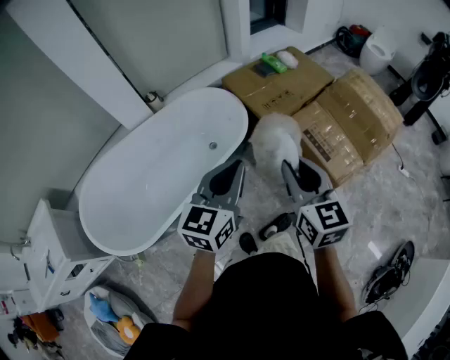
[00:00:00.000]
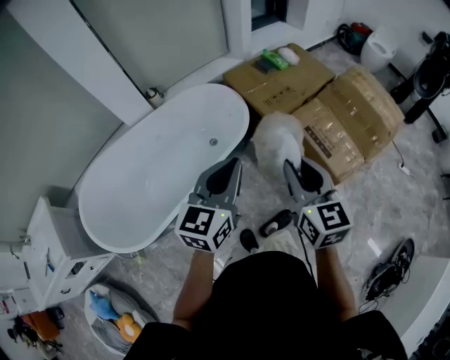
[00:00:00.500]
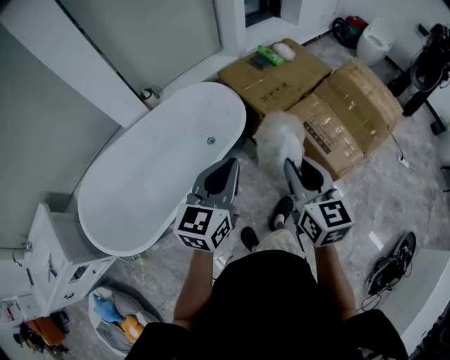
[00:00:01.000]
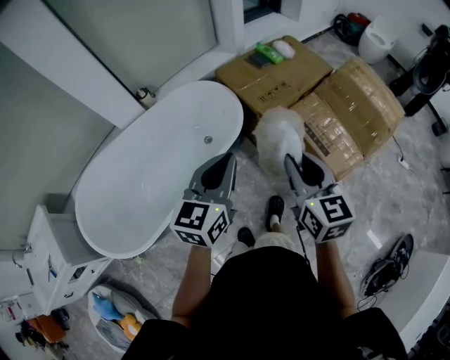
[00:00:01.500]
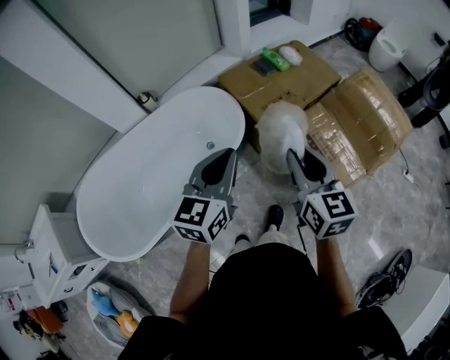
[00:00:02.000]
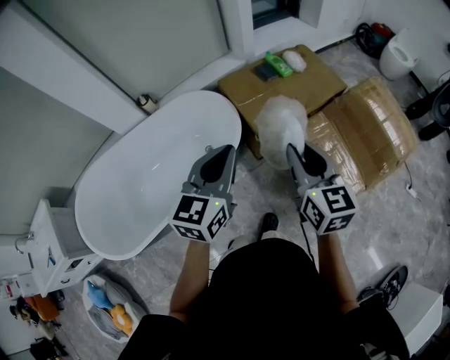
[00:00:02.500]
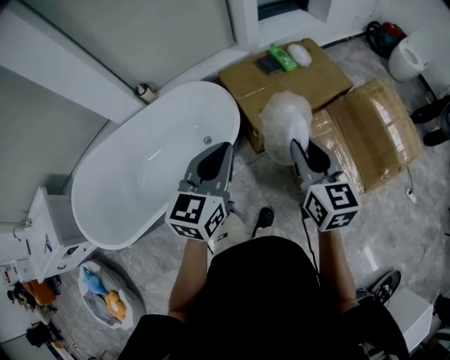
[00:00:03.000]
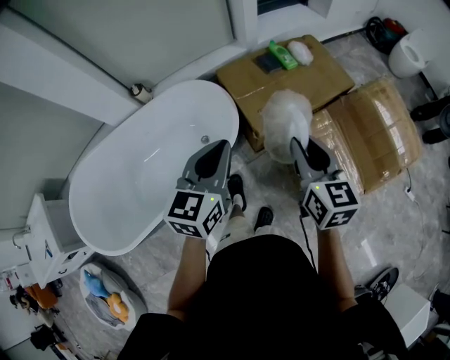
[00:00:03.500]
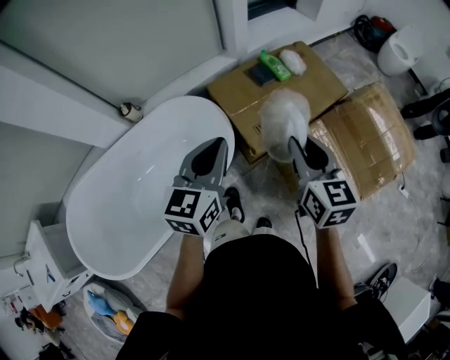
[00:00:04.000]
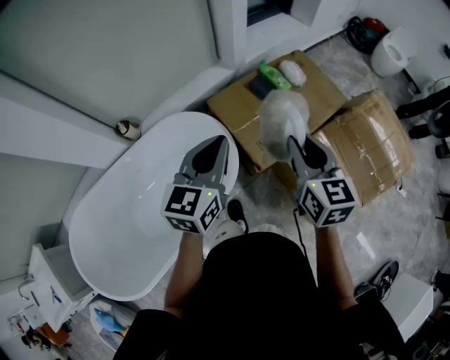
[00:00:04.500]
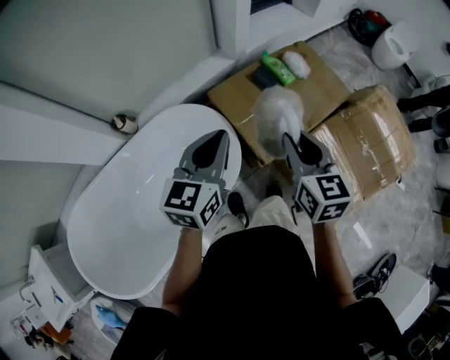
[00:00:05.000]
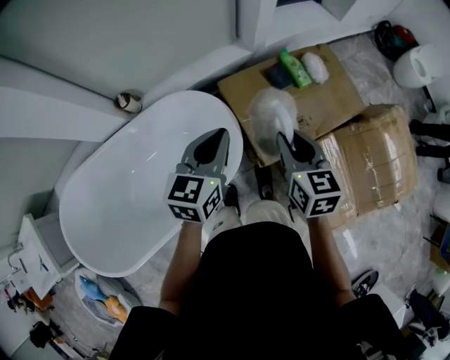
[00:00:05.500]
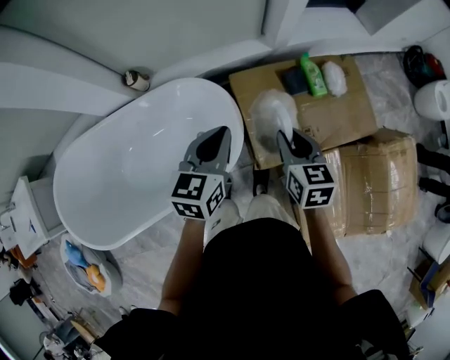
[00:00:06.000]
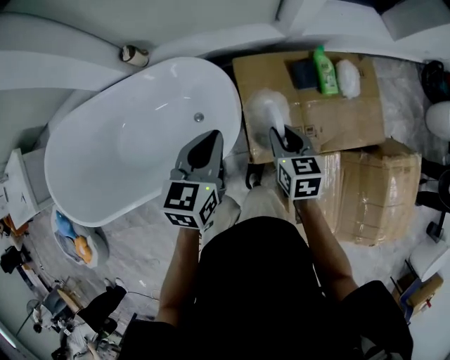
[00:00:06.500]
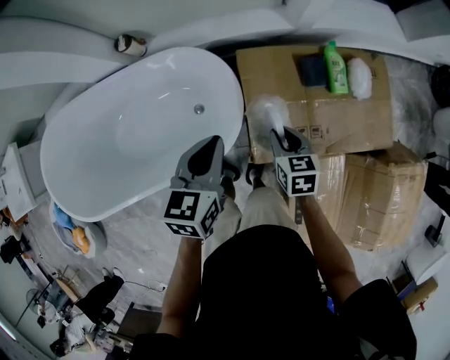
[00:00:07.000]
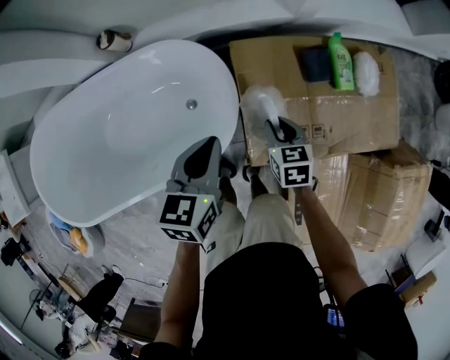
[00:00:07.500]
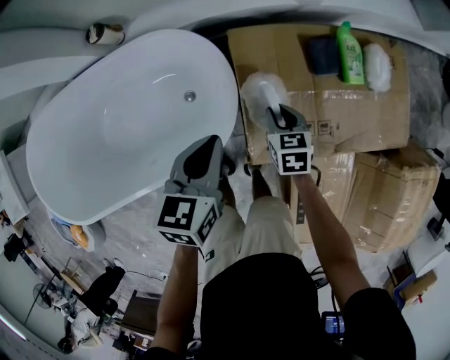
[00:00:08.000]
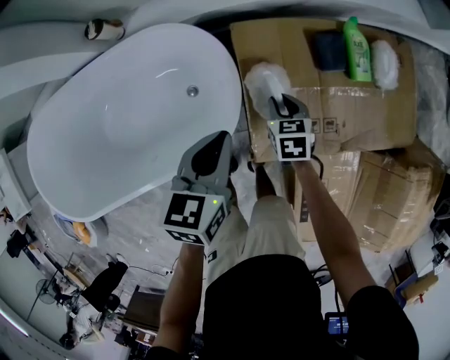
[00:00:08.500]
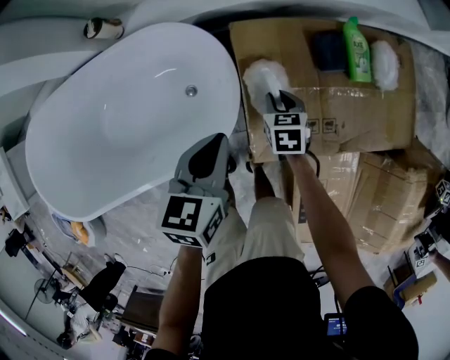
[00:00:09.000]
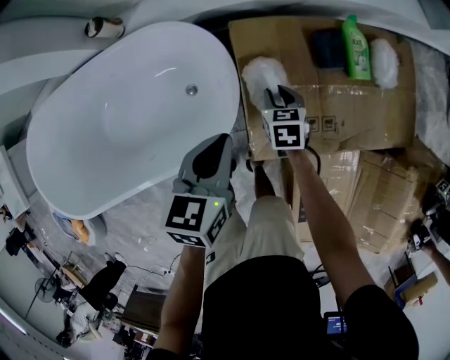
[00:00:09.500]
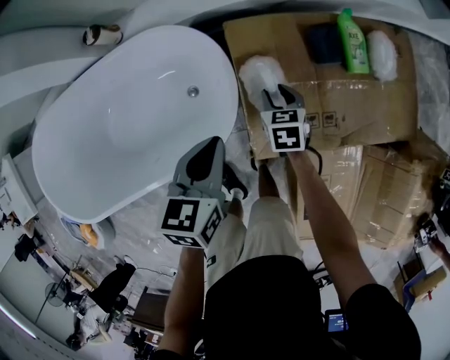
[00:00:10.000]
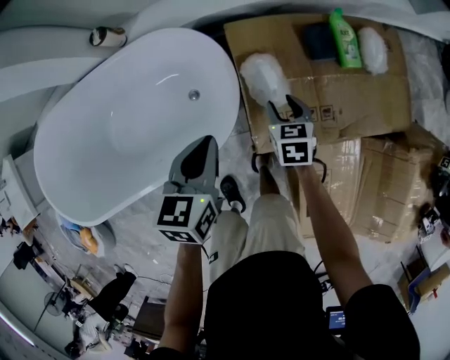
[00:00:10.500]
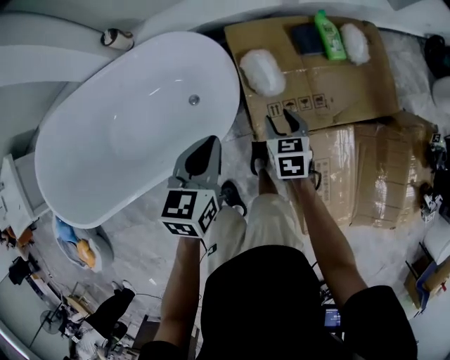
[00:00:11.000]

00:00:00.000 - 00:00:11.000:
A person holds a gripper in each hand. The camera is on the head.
00:00:00.000 - 00:00:02.000: The right gripper is displaced forward and to the right by about 15 cm. The left gripper heads forward, covering some 15 cm.
00:00:02.000 - 00:00:03.500: The right gripper heads forward and to the right, covering about 20 cm; the left gripper goes approximately 15 cm forward.
00:00:03.500 - 00:00:05.500: The left gripper travels forward by some 25 cm. Meanwhile the right gripper shifts approximately 25 cm forward and to the left.
00:00:05.500 - 00:00:07.500: The left gripper moves downward, some 20 cm, and swivels about 30 degrees; the right gripper travels downward by some 30 cm, and swivels approximately 30 degrees.
00:00:07.500 - 00:00:09.000: The left gripper goes roughly 5 cm downward; the right gripper heads downward, covering some 10 cm.
00:00:09.000 - 00:00:11.000: The two grippers go some 15 cm backward and upward. The right gripper opens.

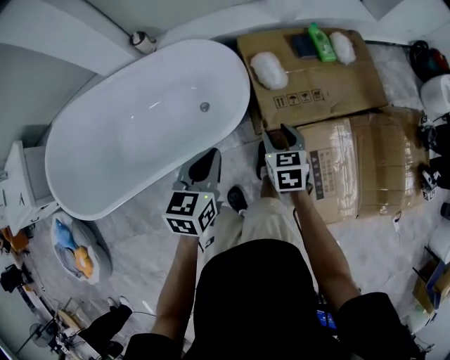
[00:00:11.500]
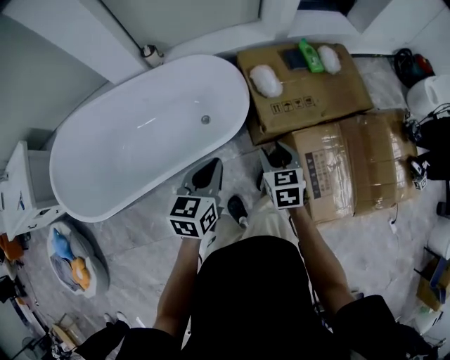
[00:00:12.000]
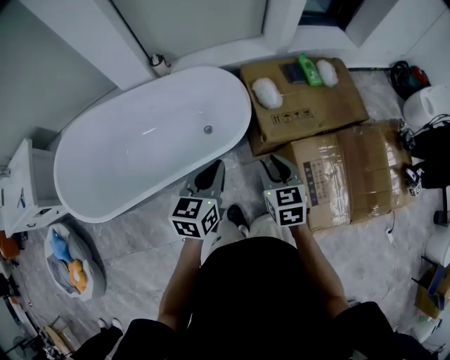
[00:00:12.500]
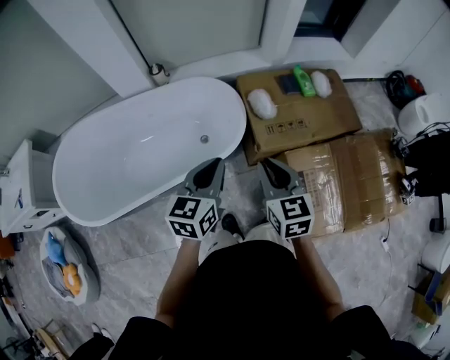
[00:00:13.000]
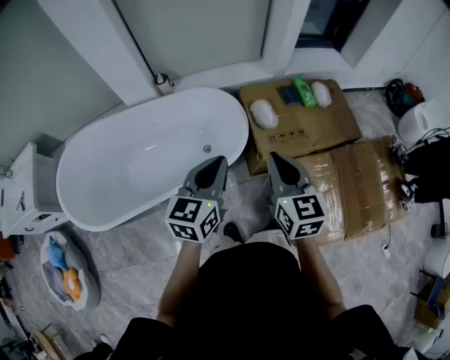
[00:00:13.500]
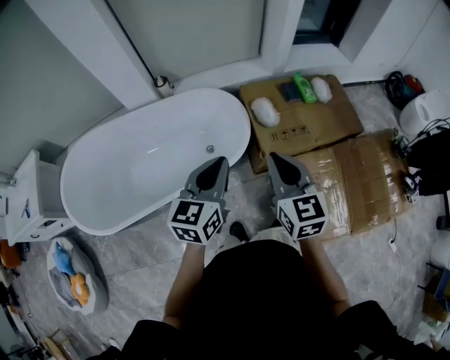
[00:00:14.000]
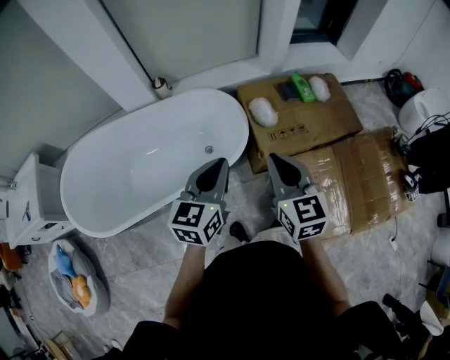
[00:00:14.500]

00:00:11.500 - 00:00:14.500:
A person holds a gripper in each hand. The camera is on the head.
00:00:11.500 - 00:00:13.000: The right gripper shifts approximately 25 cm upward and backward, and closes. Meanwhile the left gripper goes about 15 cm upward and backward.
00:00:13.000 - 00:00:14.500: The right gripper goes approximately 5 cm upward.

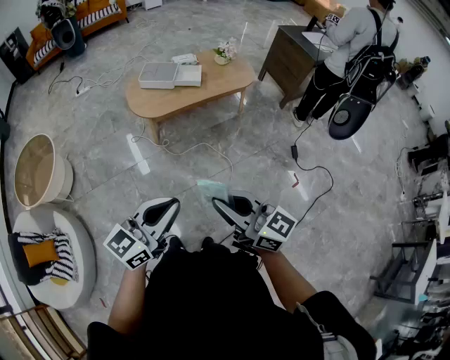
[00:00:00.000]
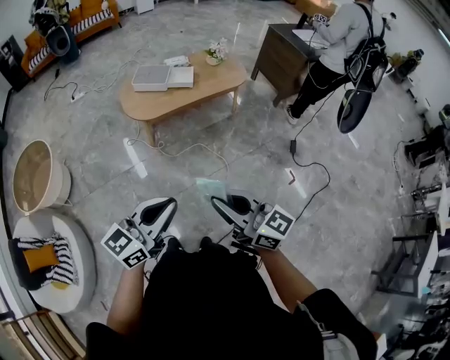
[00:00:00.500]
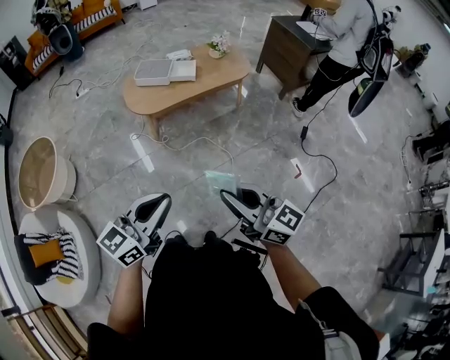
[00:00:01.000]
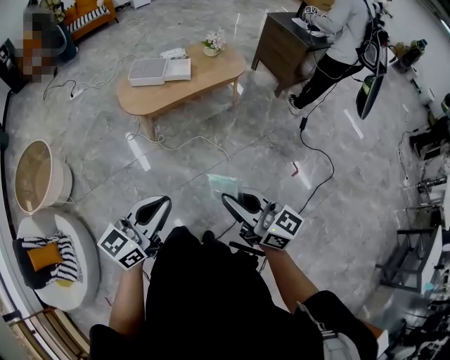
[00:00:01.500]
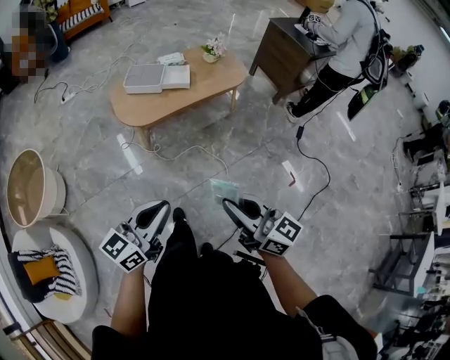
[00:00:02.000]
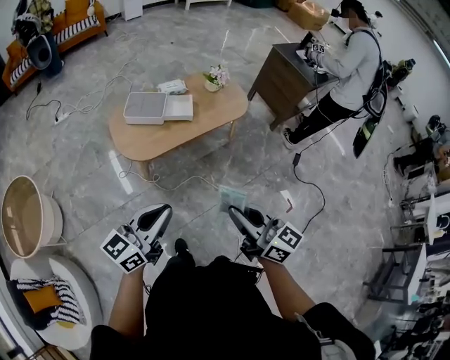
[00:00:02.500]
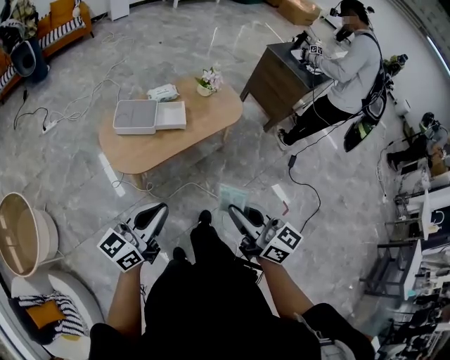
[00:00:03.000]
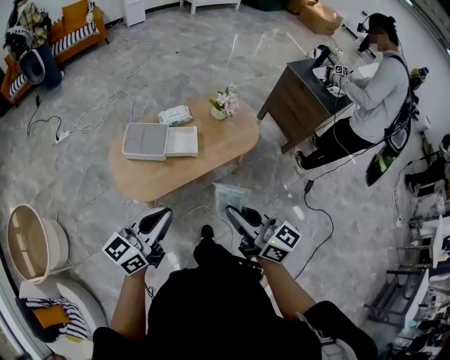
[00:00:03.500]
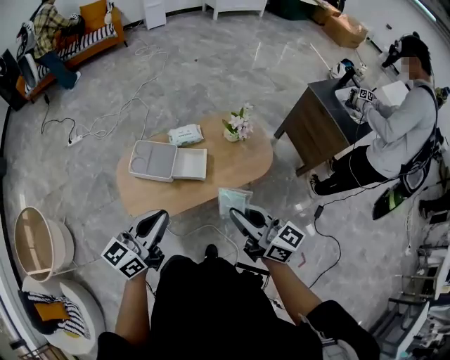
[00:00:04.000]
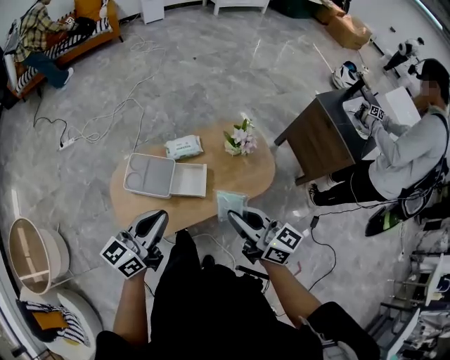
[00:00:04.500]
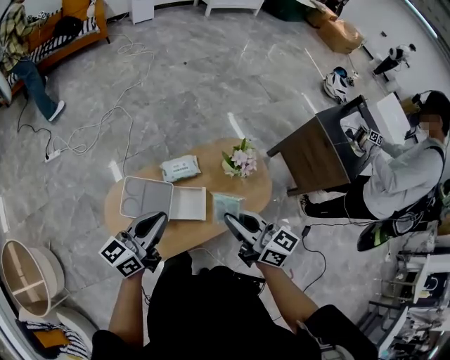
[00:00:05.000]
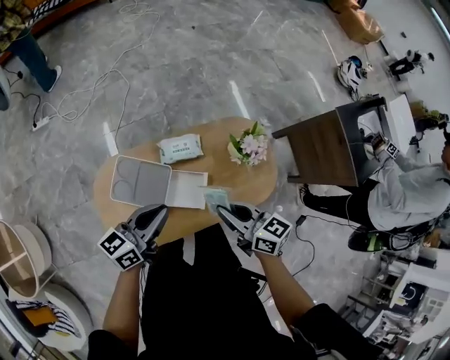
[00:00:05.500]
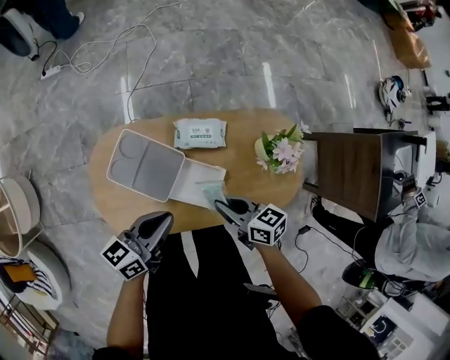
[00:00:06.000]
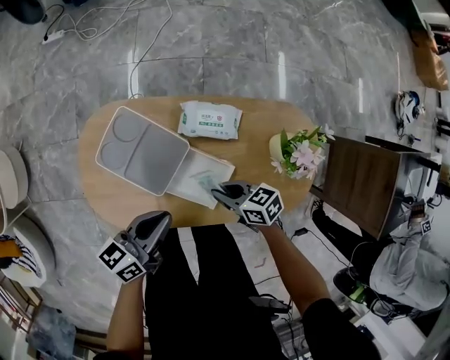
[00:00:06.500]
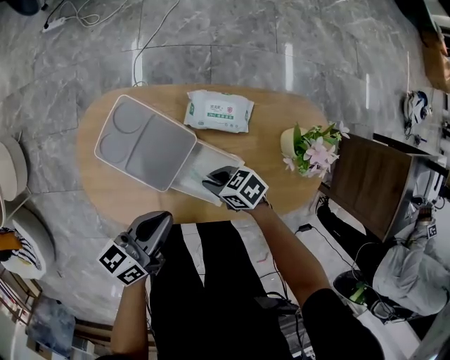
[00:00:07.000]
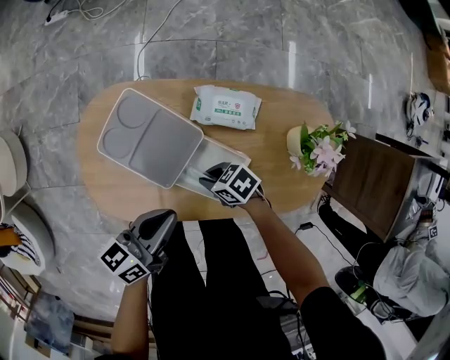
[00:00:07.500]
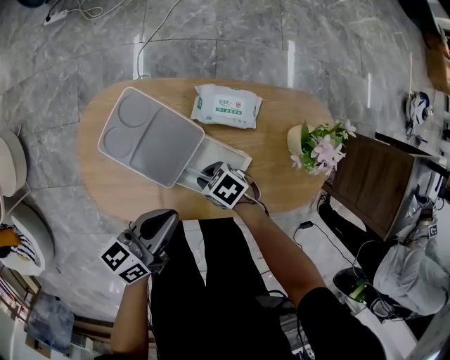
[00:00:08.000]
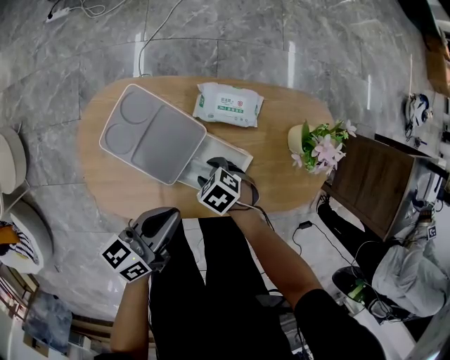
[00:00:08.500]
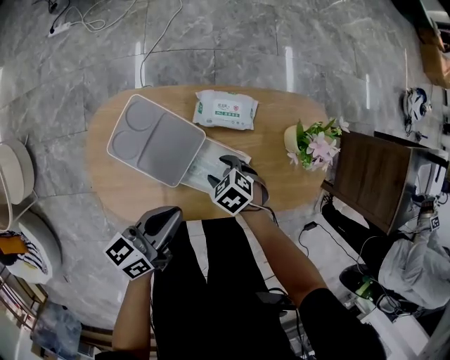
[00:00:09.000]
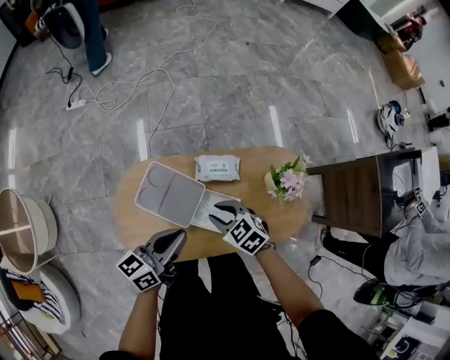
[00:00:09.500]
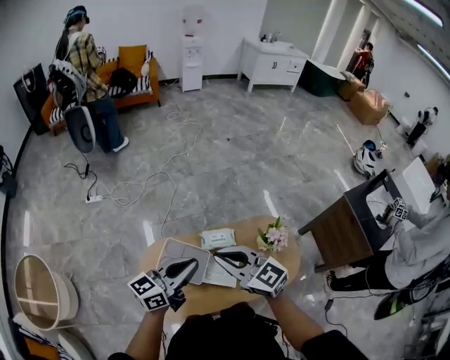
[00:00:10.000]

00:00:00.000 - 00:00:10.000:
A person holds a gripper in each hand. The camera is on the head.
00:00:00.000 - 00:00:02.000: Both grippers travel together forward, approximately 10 cm.
00:00:02.000 - 00:00:04.000: The two grippers travel together, forward, about 60 cm.
00:00:04.000 - 00:00:06.000: The two grippers go some 40 cm forward and downward. The left gripper turns by some 30 degrees; the right gripper tips its fingers downward by some 30 degrees.
00:00:06.000 - 00:00:08.000: The left gripper travels downward by some 10 cm; the right gripper travels downward by approximately 20 cm, and rotates some 50 degrees.
00:00:08.000 - 00:00:10.000: The right gripper is displaced upward by approximately 60 cm, tips its fingers upward by approximately 50 degrees, and opens and closes again, while the left gripper shifts some 35 cm upward, and swivels some 40 degrees.

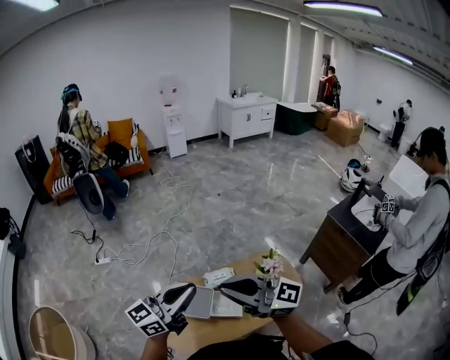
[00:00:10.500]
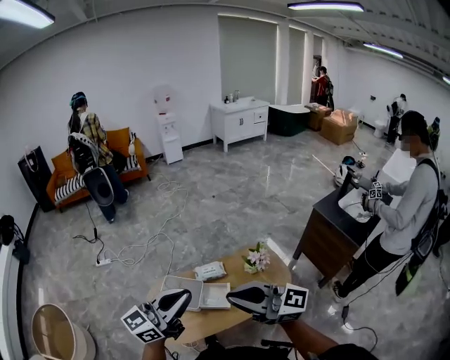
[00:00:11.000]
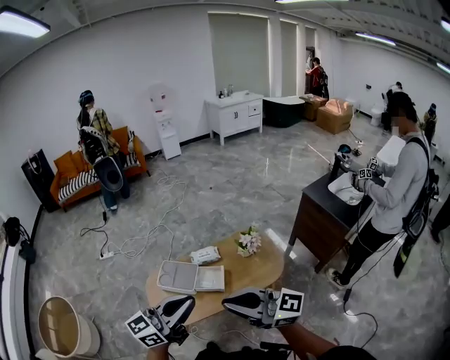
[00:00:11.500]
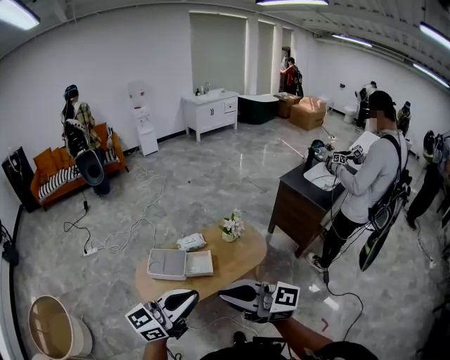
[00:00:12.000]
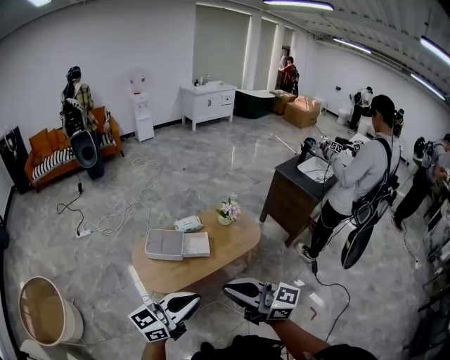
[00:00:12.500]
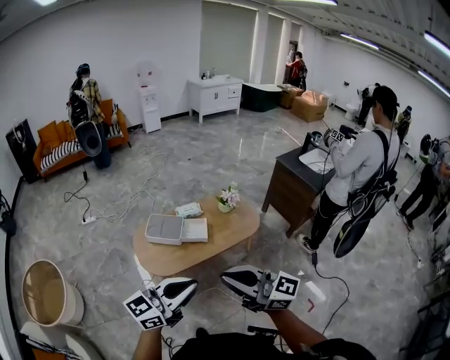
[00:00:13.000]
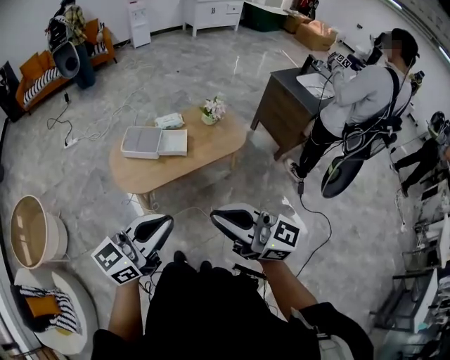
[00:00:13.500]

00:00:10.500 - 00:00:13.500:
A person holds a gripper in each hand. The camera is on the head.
00:00:10.500 - 00:00:12.000: The right gripper ends up about 35 cm from where it was; the left gripper changes place by approximately 35 cm.
00:00:12.000 - 00:00:13.500: The left gripper changes place by about 20 cm; the right gripper shifts by some 20 cm.
